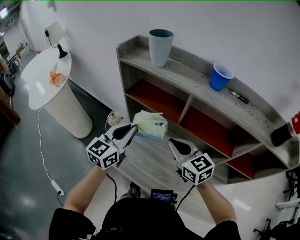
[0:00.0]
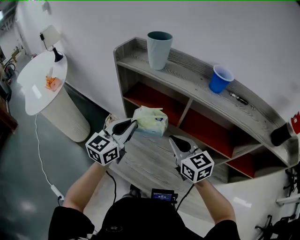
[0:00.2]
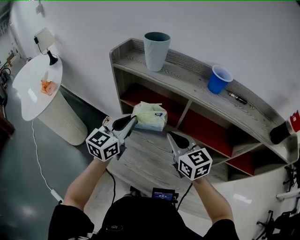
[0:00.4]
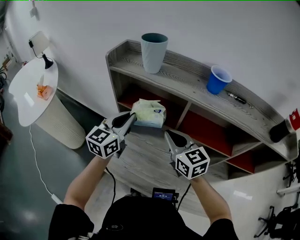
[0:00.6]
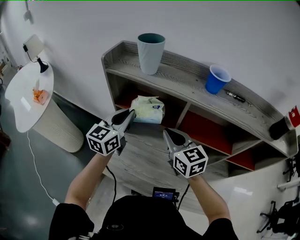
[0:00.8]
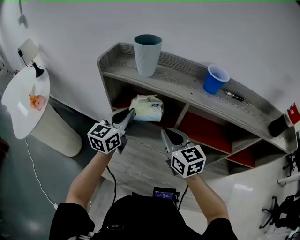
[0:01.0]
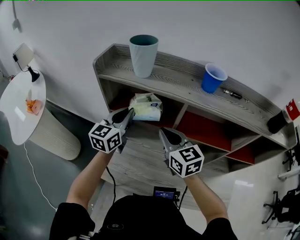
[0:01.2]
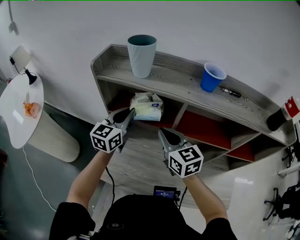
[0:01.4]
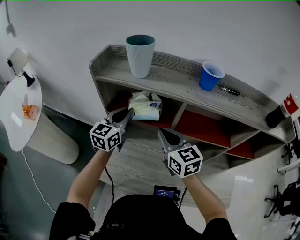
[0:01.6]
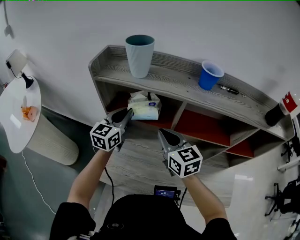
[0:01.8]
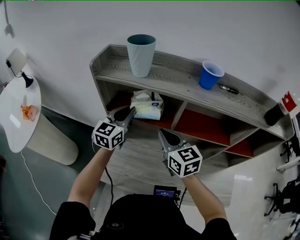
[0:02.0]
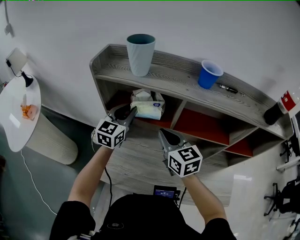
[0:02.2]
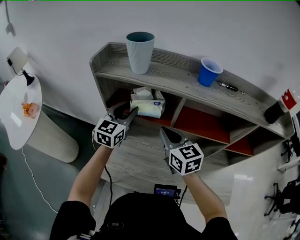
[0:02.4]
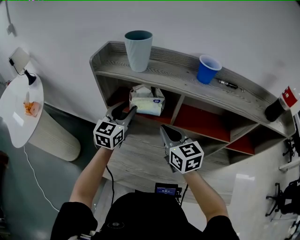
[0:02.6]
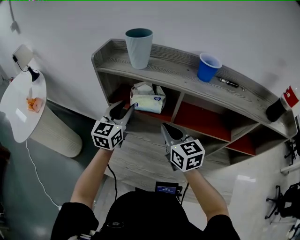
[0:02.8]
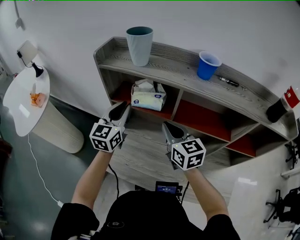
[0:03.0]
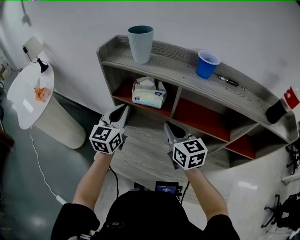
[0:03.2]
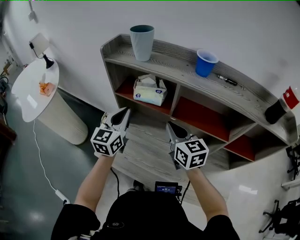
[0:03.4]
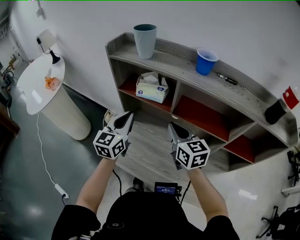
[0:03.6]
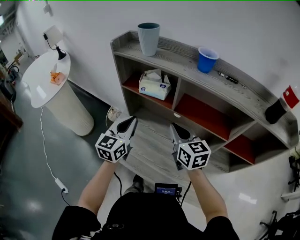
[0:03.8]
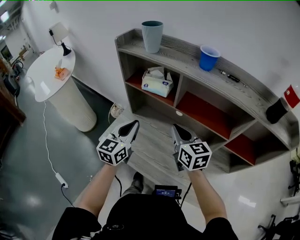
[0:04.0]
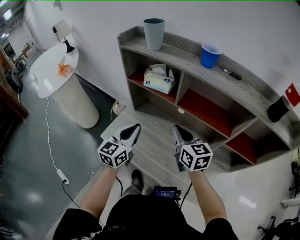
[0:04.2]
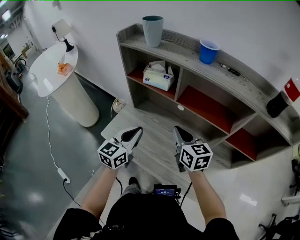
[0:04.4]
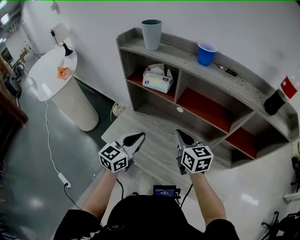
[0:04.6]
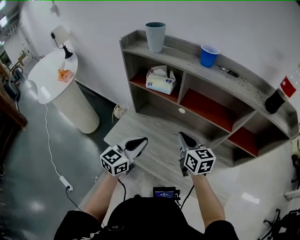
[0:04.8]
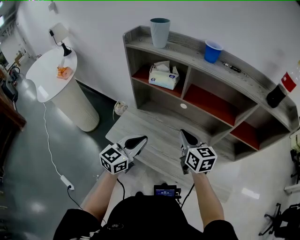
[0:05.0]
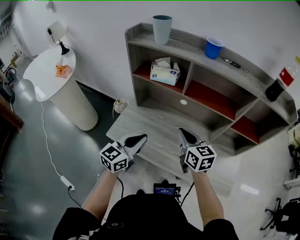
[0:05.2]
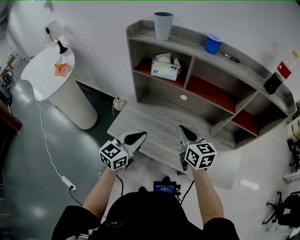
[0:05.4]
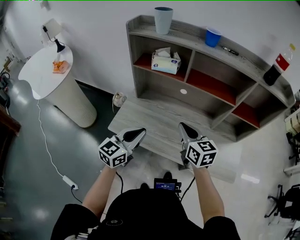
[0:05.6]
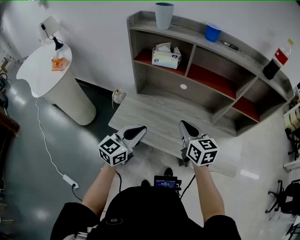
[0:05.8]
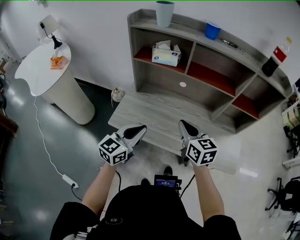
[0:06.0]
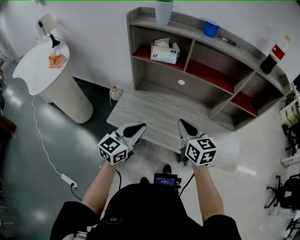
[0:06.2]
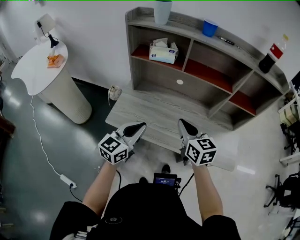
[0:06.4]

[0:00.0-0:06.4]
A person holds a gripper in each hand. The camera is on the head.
0:00.0 to 0:01.6: The left gripper goes roughly 15 cm forward. Meanwhile the right gripper travels forward by about 10 cm, and changes its angle by about 20 degrees.
0:01.6 to 0:03.2: The left gripper moves backward, approximately 5 cm, and opens and closes again.
0:03.2 to 0:04.8: The right gripper goes approximately 10 cm backward; the left gripper travels backward by about 20 cm.
0:04.8 to 0:06.4: The right gripper moves backward, approximately 15 cm; the left gripper goes approximately 10 cm backward and to the left.

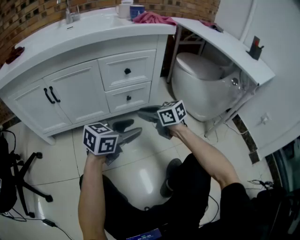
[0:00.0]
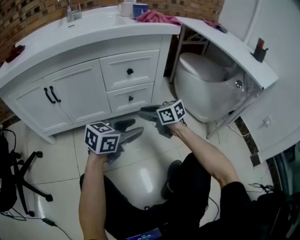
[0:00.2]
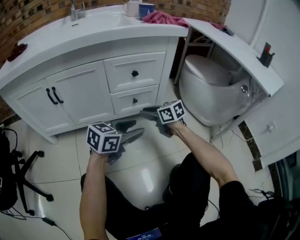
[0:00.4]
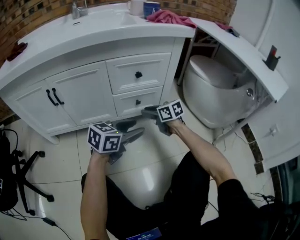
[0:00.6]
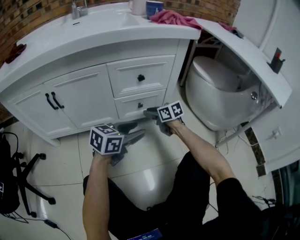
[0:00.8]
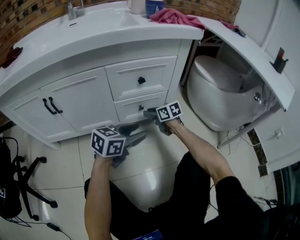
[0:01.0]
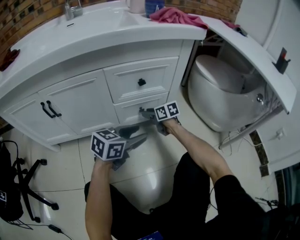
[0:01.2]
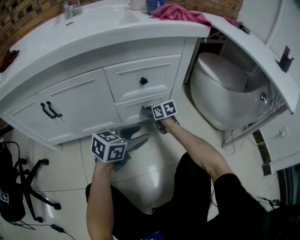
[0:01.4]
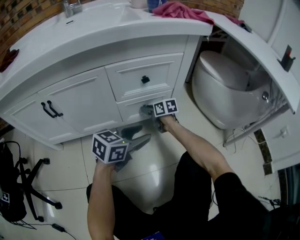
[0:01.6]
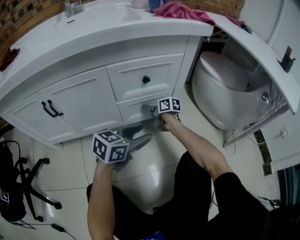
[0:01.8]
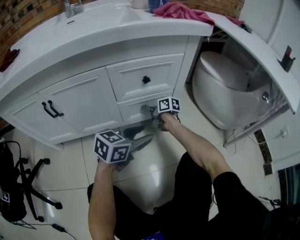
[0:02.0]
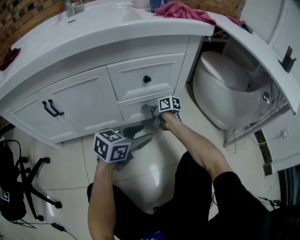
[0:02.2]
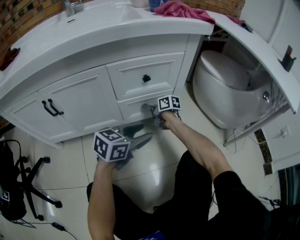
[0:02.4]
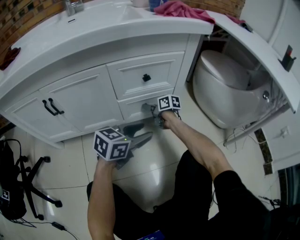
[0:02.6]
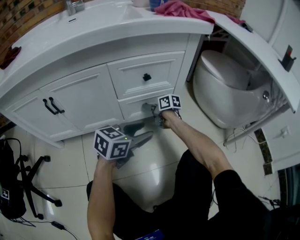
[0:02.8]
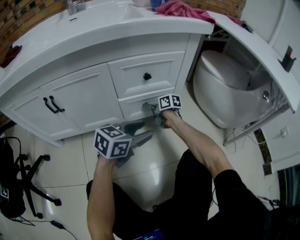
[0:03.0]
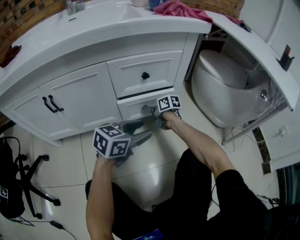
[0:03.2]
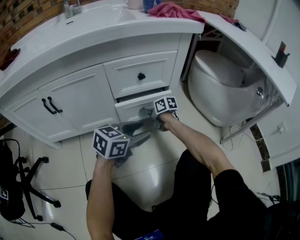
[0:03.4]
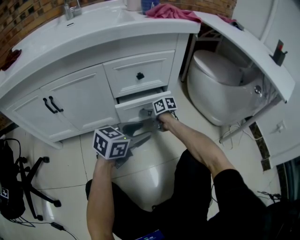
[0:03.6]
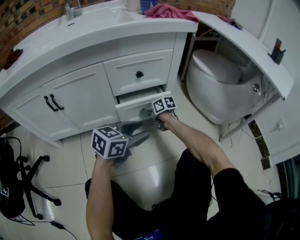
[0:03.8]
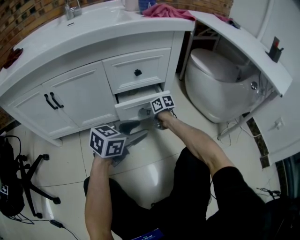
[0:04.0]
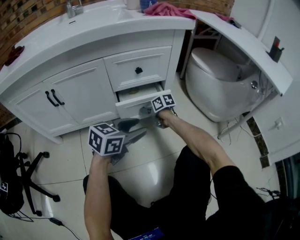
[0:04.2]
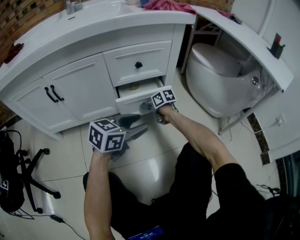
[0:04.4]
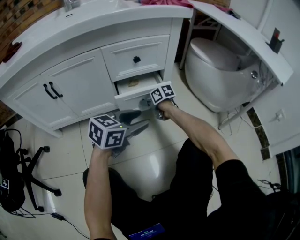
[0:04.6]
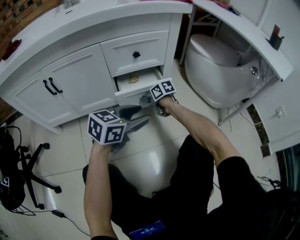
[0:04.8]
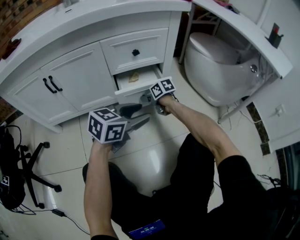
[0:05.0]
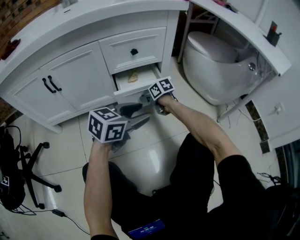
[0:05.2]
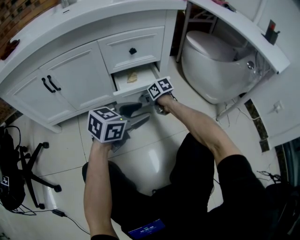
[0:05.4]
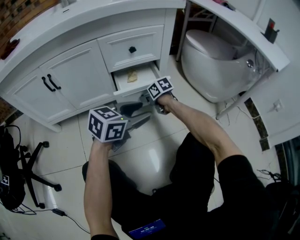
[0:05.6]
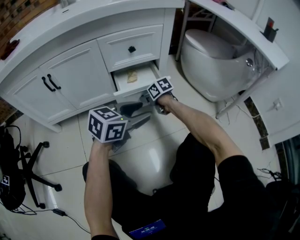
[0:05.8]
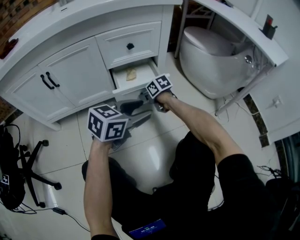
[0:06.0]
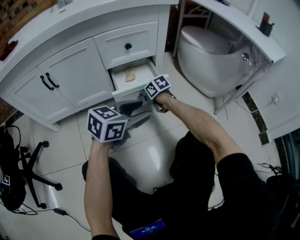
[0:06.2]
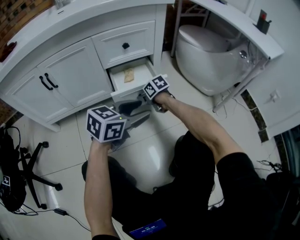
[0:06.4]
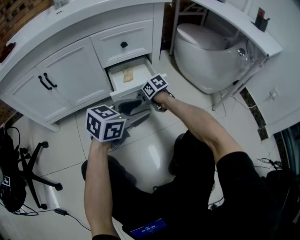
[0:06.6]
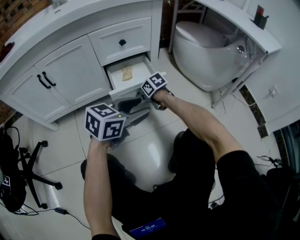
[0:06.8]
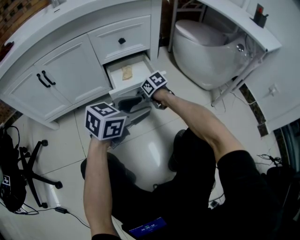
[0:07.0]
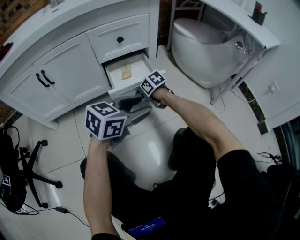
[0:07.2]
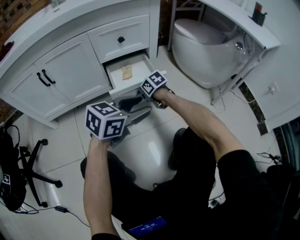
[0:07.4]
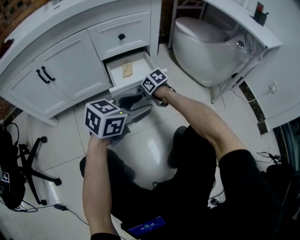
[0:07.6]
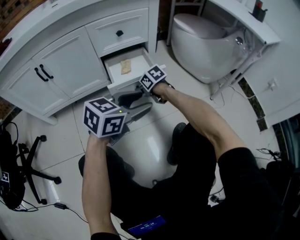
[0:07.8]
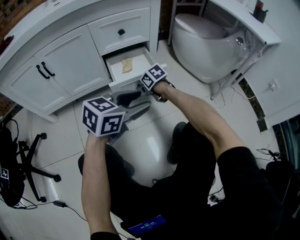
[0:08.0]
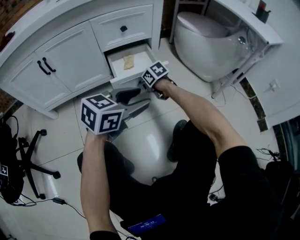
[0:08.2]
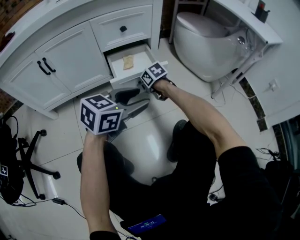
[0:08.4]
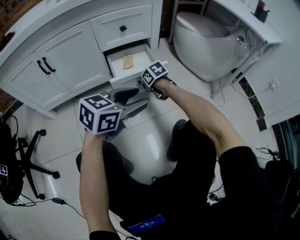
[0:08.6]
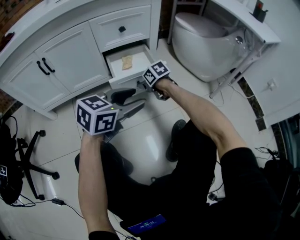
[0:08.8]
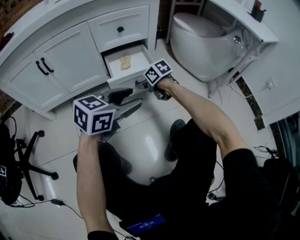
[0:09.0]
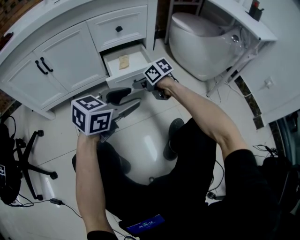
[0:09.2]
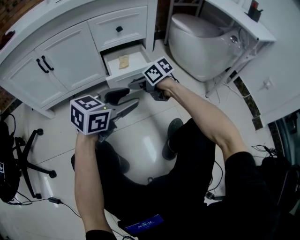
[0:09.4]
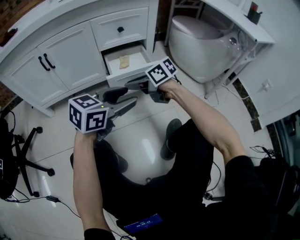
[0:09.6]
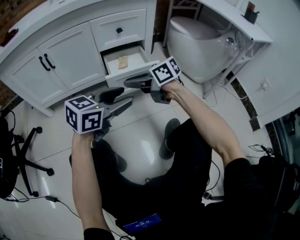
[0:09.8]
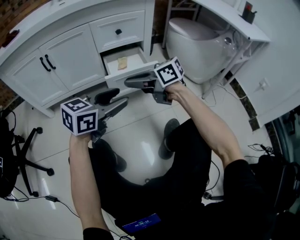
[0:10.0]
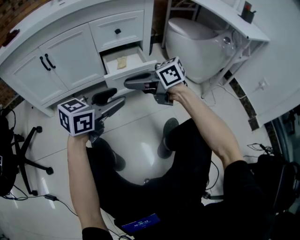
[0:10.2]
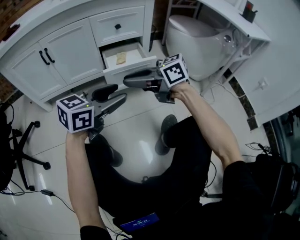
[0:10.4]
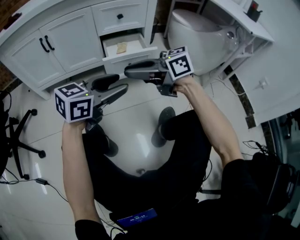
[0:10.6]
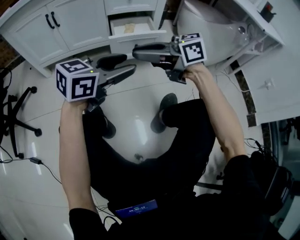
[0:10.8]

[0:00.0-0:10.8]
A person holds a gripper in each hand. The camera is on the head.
0:00.0 to 0:01.6: The left gripper travels forward and downward by approximately 15 cm. The right gripper heads forward and downward, covering some 30 cm, swivels some 20 degrees, and opens its fingers.
0:03.0 to 0:04.6: Both grippers move backward, approximately 10 cm.
0:04.6 to 0:06.2: Both grippers travel together backward, about 5 cm.
0:06.2 to 0:07.8: The left gripper changes place by approximately 5 cm.
0:07.8 to 0:09.2: The right gripper moves upward, approximately 5 cm.
0:09.2 to 0:10.8: The right gripper shifts about 20 cm upward, and turns by approximately 40 degrees. Meanwhile the left gripper changes place by some 10 cm.

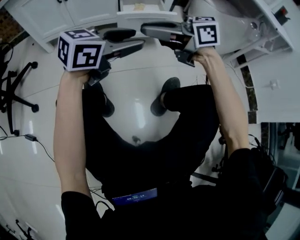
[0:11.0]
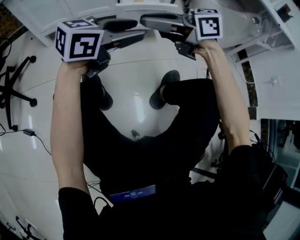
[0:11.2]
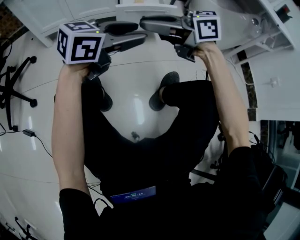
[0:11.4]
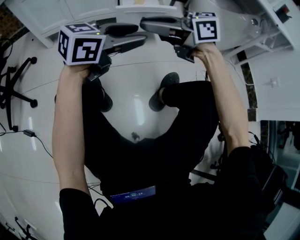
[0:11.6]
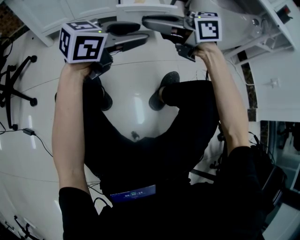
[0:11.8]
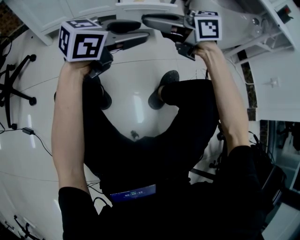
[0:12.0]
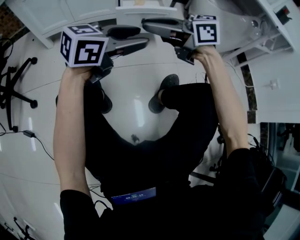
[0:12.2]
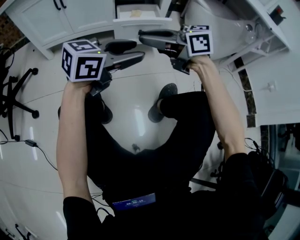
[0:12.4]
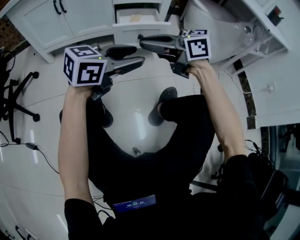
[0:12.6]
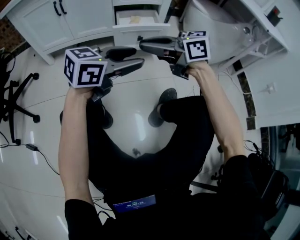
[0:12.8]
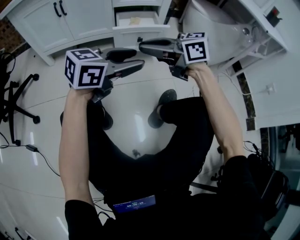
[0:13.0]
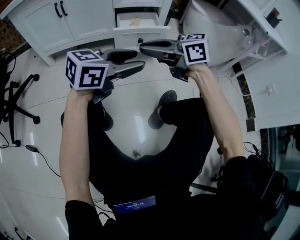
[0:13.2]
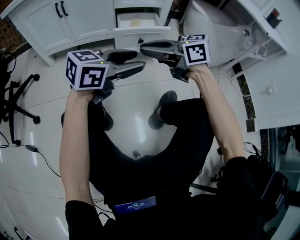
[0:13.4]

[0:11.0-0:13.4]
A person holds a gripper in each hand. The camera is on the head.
0:11.0 to 0:12.2: There are only small adjustments of the grippers.
0:12.2 to 0:13.4: The two grippers keep their place.

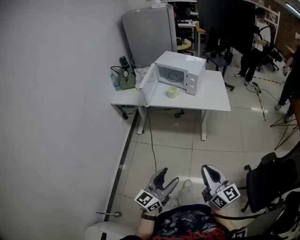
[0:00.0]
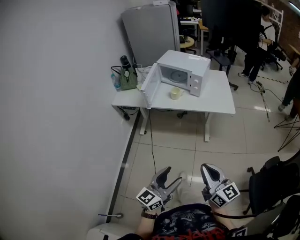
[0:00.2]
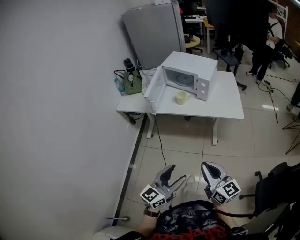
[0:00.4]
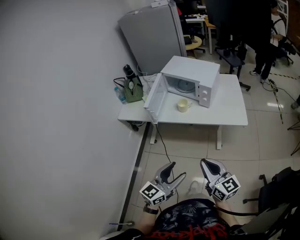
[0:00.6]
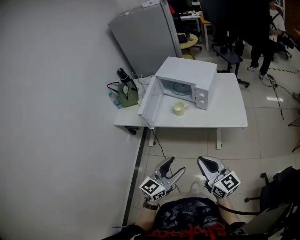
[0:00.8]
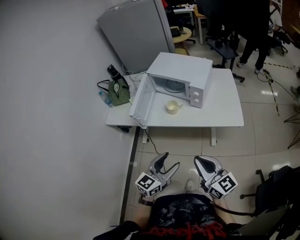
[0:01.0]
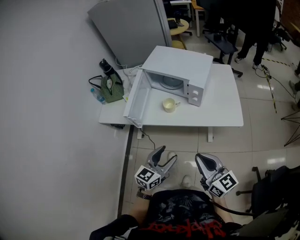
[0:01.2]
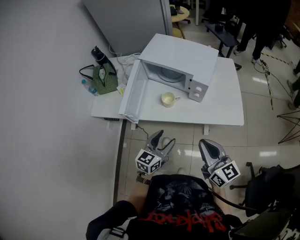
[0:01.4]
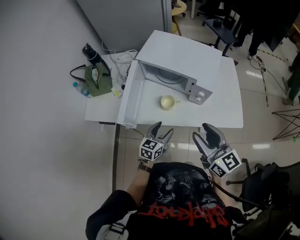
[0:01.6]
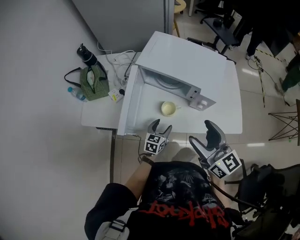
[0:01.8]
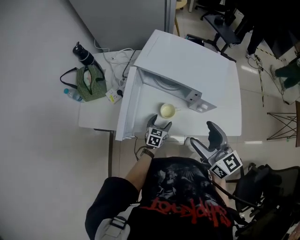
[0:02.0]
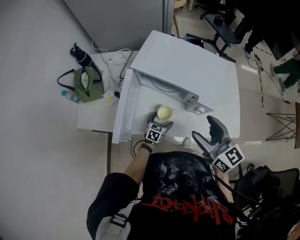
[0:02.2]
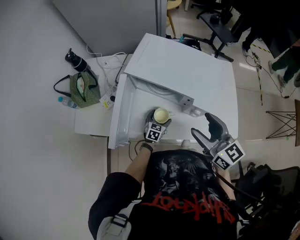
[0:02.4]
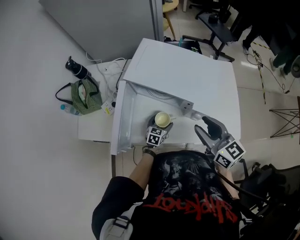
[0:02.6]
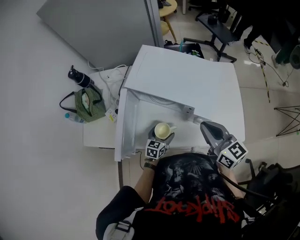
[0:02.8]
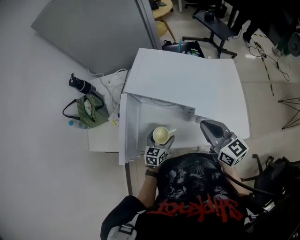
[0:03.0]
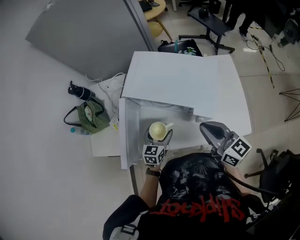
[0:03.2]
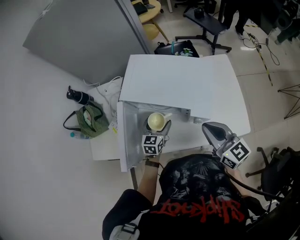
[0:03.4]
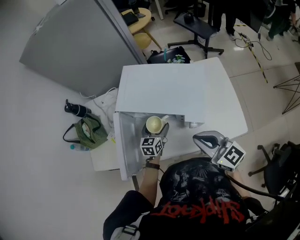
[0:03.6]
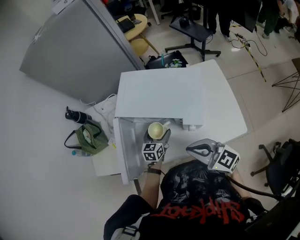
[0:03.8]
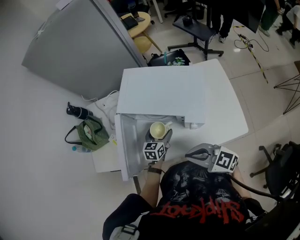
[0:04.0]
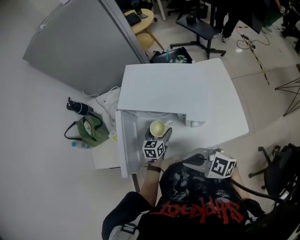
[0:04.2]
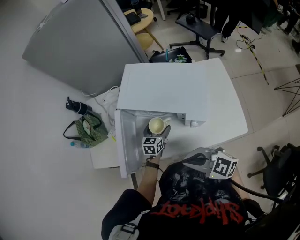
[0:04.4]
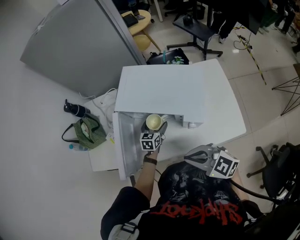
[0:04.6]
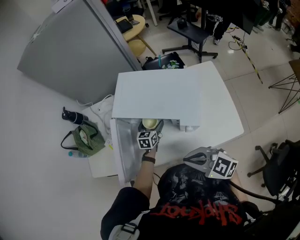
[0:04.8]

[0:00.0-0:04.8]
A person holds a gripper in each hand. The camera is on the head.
0:00.0 to 0:01.6: The two grippers travel together, forward, some 60 cm. The right gripper opens. The left gripper points its fingers about 30 degrees further downward.
0:01.6 to 0:03.2: The right gripper goes some 15 cm forward, and closes its fingers. The left gripper swings forward and backward, approximately 20 cm each way, with 2 reversals, and opens up.
0:03.2 to 0:04.8: The right gripper travels backward and to the left by about 10 cm, and changes its angle by some 40 degrees. The left gripper is displaced forward and to the right by about 15 cm.
